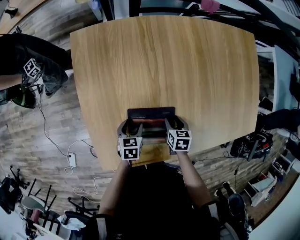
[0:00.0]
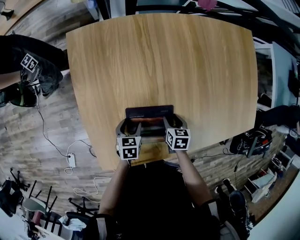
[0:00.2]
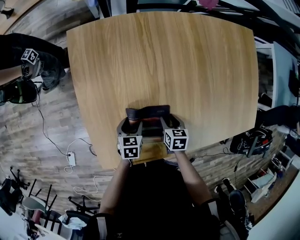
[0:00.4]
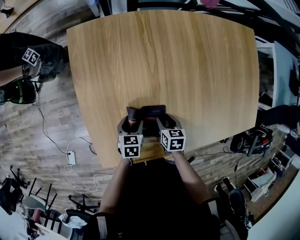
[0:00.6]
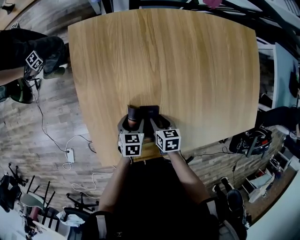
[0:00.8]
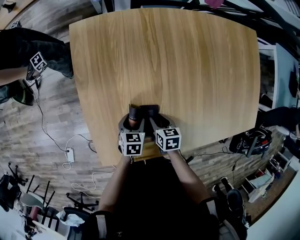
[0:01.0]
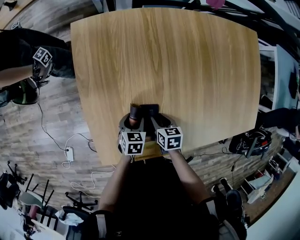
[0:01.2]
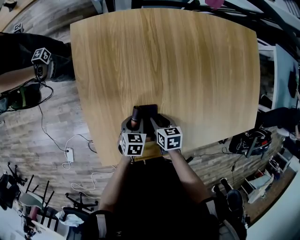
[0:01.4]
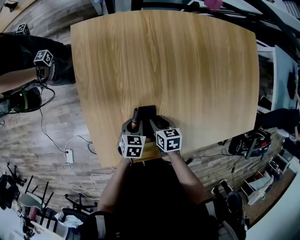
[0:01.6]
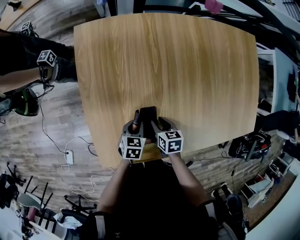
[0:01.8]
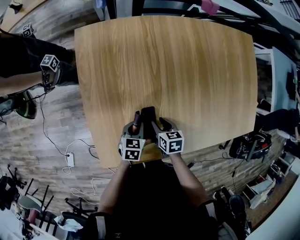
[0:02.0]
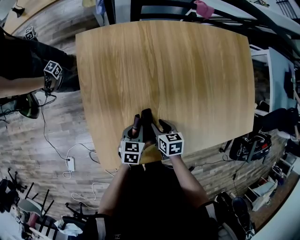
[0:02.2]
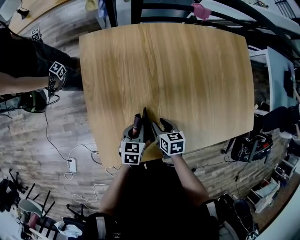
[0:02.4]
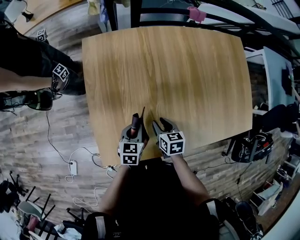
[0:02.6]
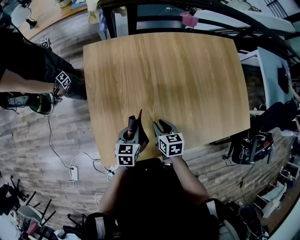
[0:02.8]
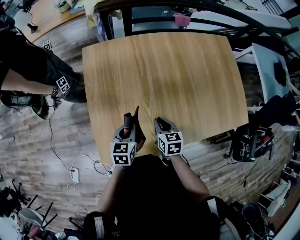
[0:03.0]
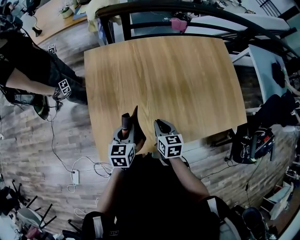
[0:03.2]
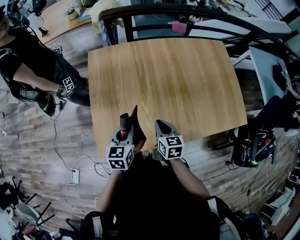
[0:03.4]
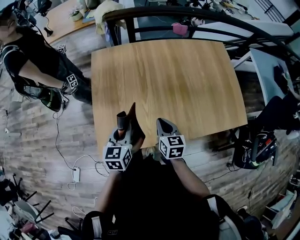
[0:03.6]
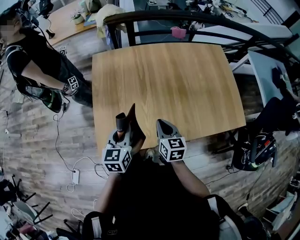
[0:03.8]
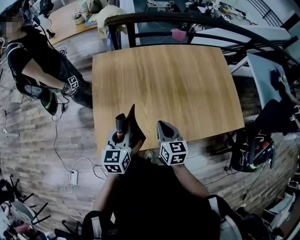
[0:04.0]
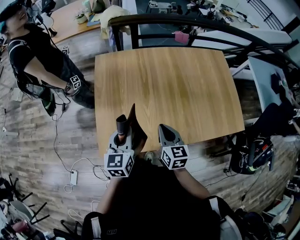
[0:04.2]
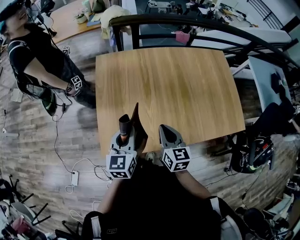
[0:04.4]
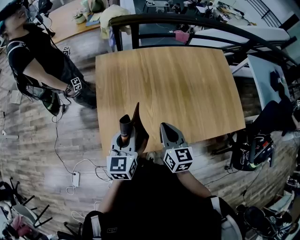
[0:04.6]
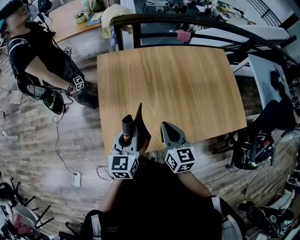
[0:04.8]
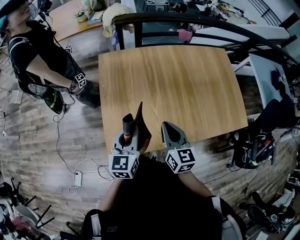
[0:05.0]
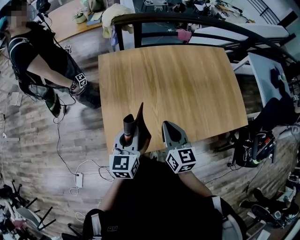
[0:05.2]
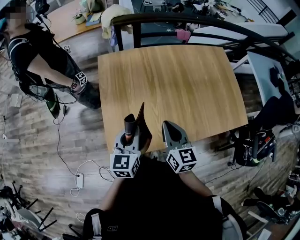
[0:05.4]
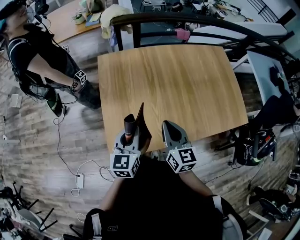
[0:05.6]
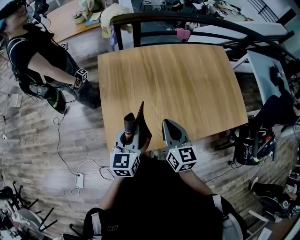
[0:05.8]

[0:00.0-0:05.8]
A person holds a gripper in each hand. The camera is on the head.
0:00.0 to 0:01.4: The left gripper closes up, while the right gripper shifts approximately 10 cm to the left.
0:01.4 to 0:02.8: The grippers both shift upward by approximately 10 cm. The left gripper closes its fingers.
0:02.8 to 0:04.4: The left gripper travels upward by about 20 cm, and changes its angle by about 30 degrees. Meanwhile the right gripper is displaced upward and backward by roughly 20 cm, changes its angle by approximately 30 degrees, and closes.
0:04.4 to 0:05.8: The right gripper travels upward by some 5 cm.

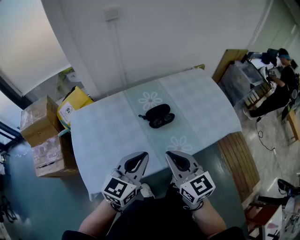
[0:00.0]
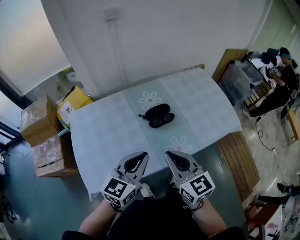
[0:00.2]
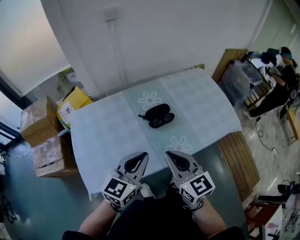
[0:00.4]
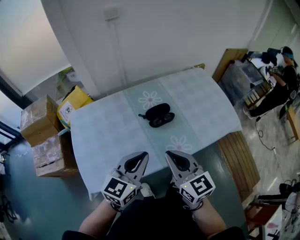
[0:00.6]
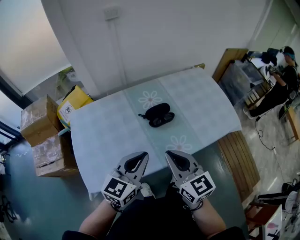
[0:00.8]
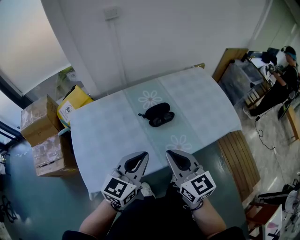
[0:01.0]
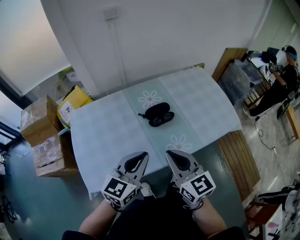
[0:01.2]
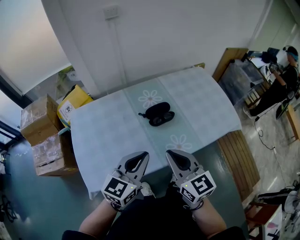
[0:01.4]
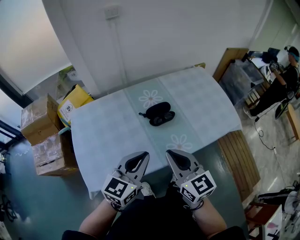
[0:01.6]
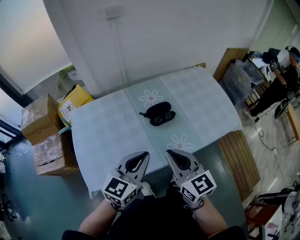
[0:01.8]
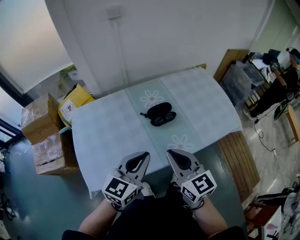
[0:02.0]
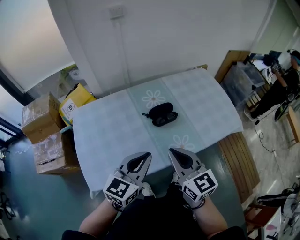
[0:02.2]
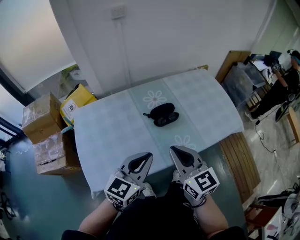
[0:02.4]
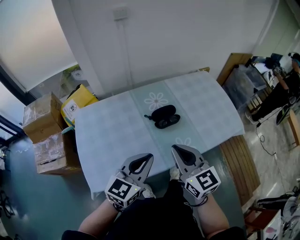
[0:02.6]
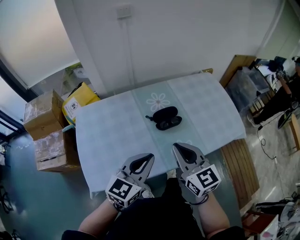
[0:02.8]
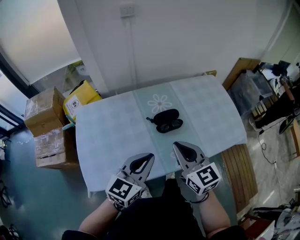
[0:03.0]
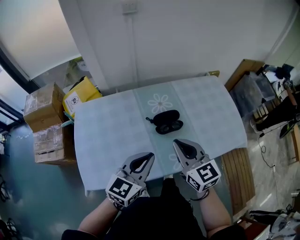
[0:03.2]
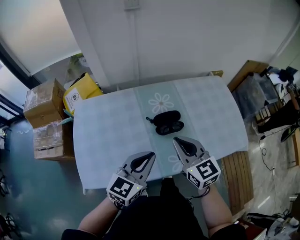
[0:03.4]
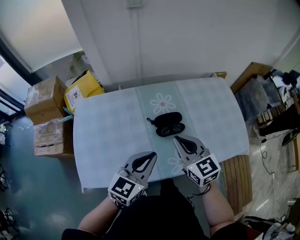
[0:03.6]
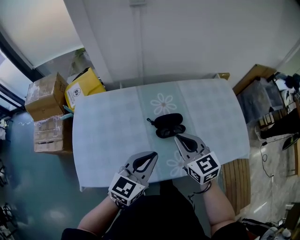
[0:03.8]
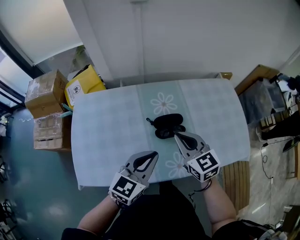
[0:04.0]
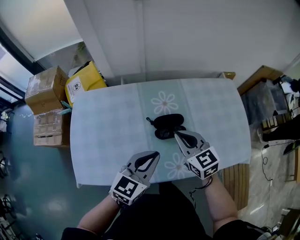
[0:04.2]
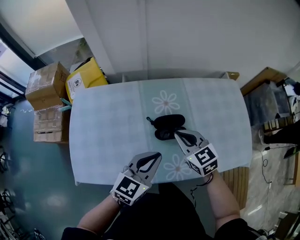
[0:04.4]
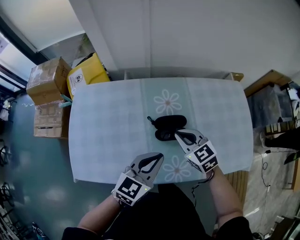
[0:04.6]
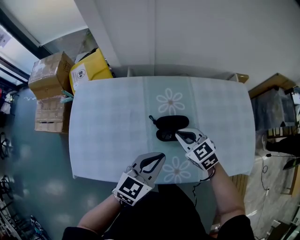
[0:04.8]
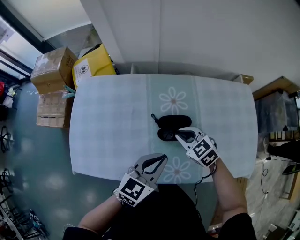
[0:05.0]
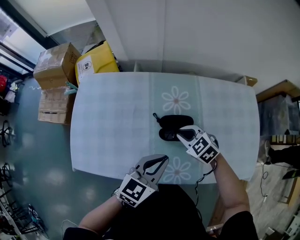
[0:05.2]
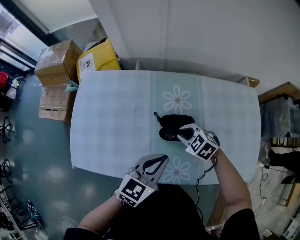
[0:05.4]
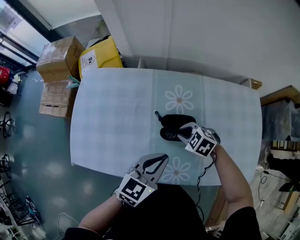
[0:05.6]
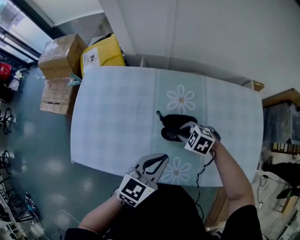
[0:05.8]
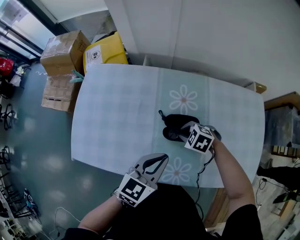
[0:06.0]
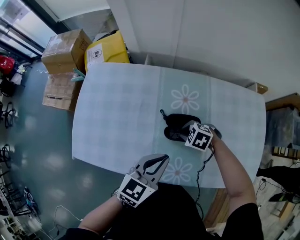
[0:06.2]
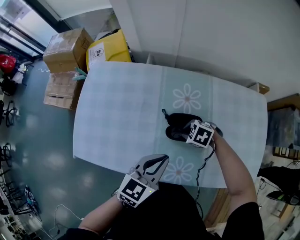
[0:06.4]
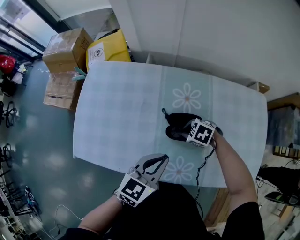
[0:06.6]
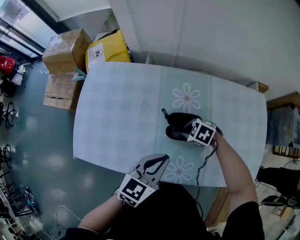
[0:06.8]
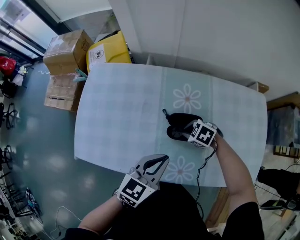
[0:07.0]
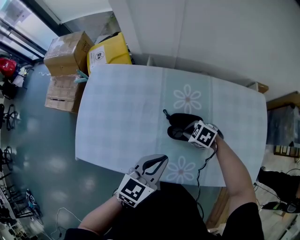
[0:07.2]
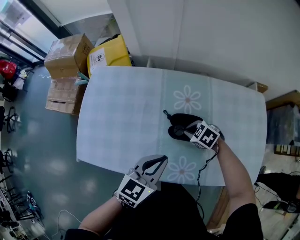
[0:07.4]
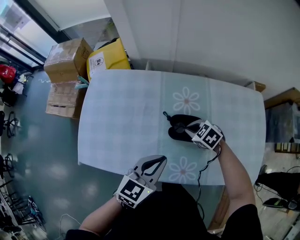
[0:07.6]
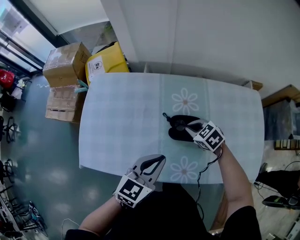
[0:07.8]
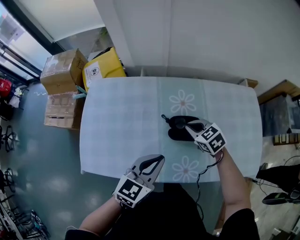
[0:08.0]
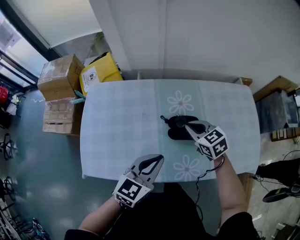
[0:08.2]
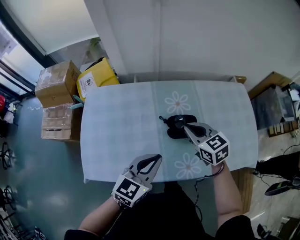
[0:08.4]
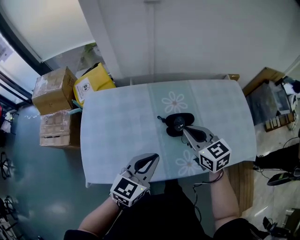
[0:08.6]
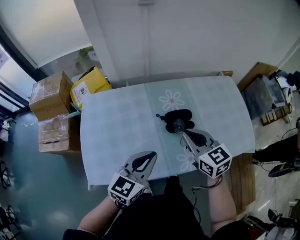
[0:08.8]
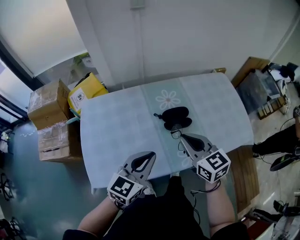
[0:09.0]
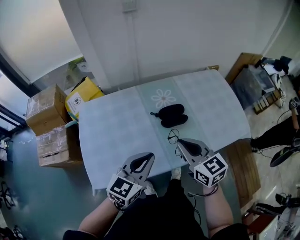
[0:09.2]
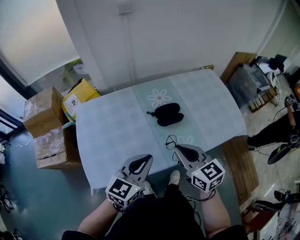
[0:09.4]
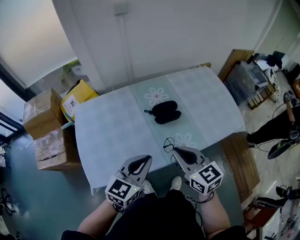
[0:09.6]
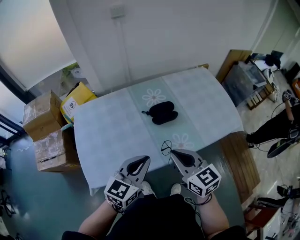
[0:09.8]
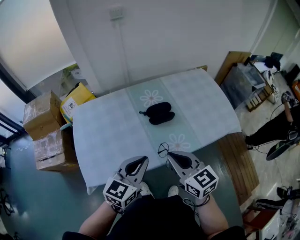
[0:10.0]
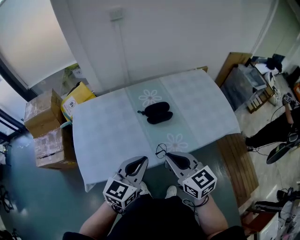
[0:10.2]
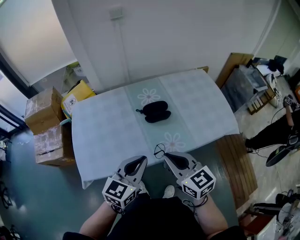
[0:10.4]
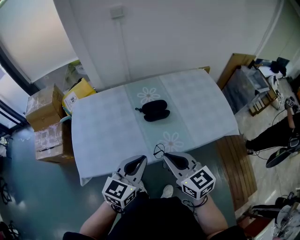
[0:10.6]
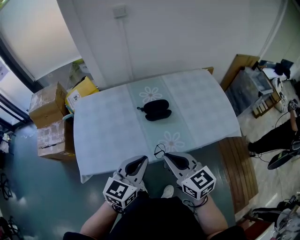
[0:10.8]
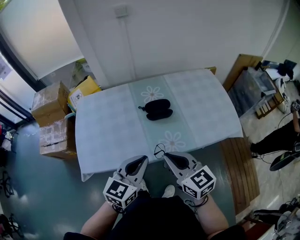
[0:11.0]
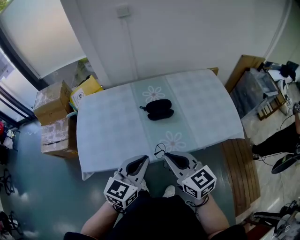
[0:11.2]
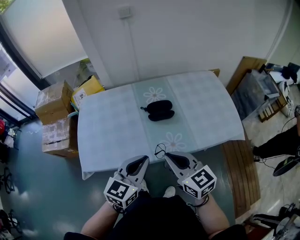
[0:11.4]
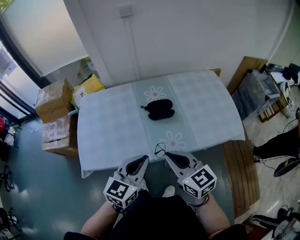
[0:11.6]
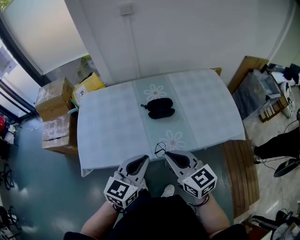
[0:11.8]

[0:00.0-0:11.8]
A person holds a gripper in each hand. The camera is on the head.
0:00.0 to 0:01.4: Both grippers stay about where they are.
0:01.4 to 0:03.0: The right gripper travels forward by about 5 cm.
0:03.0 to 0:04.4: The right gripper heads forward and downward, covering some 20 cm, and turns by some 30 degrees. Meanwhile the left gripper travels forward, to the right and downward by about 15 cm.
0:04.4 to 0:06.0: The right gripper is displaced downward by about 15 cm, and tips its fingers downward by some 40 degrees.
0:06.0 to 0:07.4: There are only small adjustments of the grippers.
0:07.4 to 0:08.8: The right gripper goes about 25 cm upward, and tilts its fingers approximately 40 degrees upward; the left gripper changes place by some 10 cm.
0:08.8 to 0:10.4: The left gripper shifts approximately 10 cm backward and to the right, while the right gripper is displaced backward by about 20 cm.
0:10.4 to 0:11.8: The grippers move only a little.

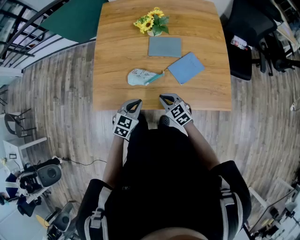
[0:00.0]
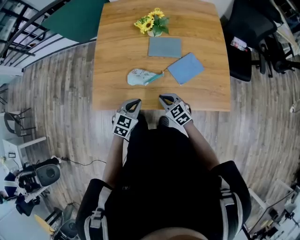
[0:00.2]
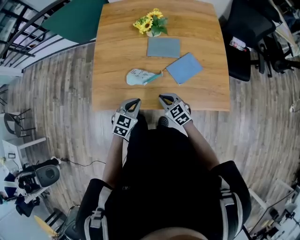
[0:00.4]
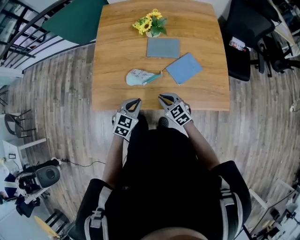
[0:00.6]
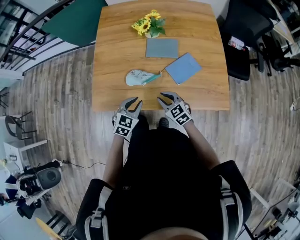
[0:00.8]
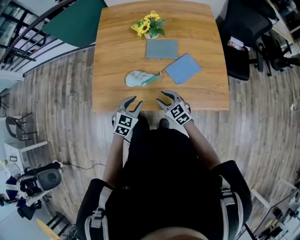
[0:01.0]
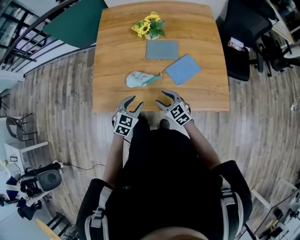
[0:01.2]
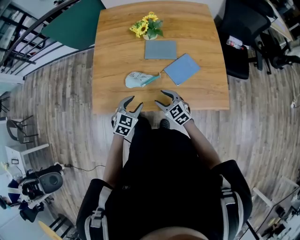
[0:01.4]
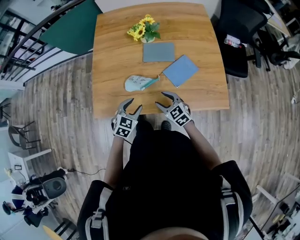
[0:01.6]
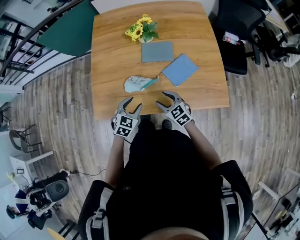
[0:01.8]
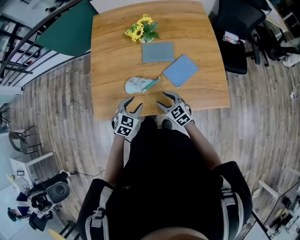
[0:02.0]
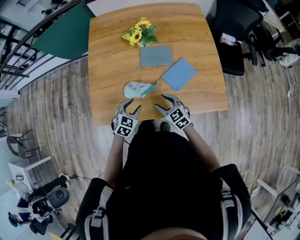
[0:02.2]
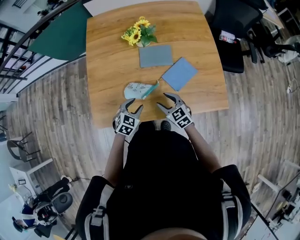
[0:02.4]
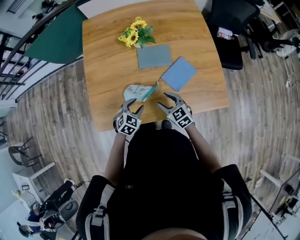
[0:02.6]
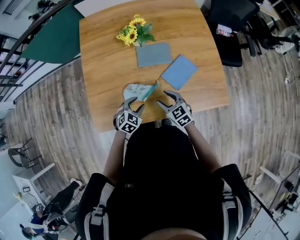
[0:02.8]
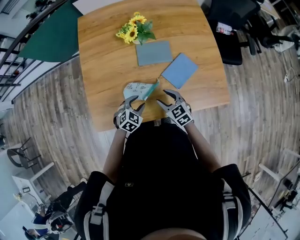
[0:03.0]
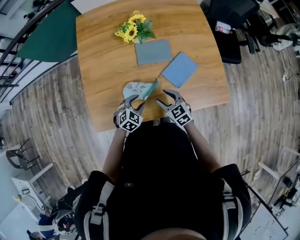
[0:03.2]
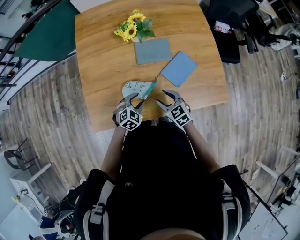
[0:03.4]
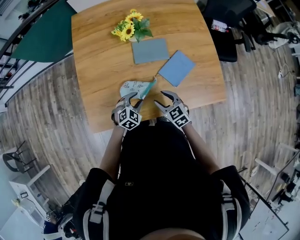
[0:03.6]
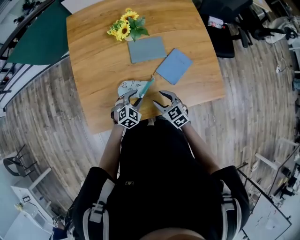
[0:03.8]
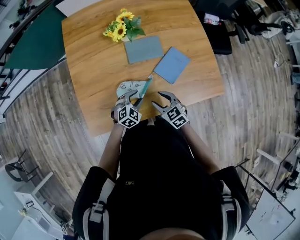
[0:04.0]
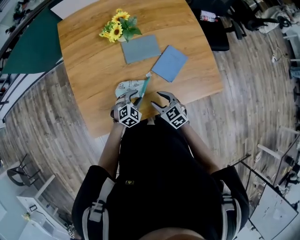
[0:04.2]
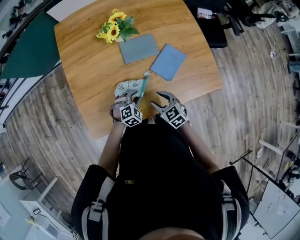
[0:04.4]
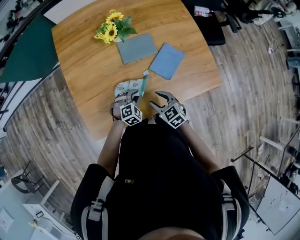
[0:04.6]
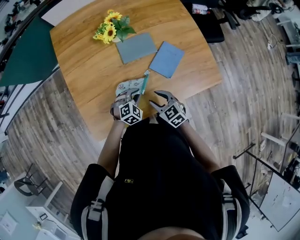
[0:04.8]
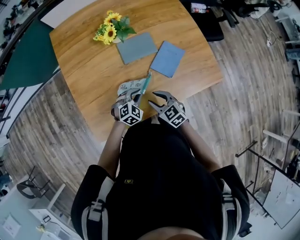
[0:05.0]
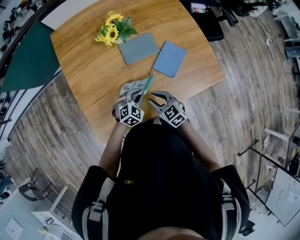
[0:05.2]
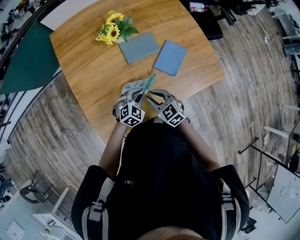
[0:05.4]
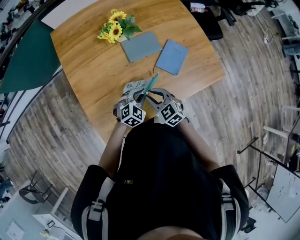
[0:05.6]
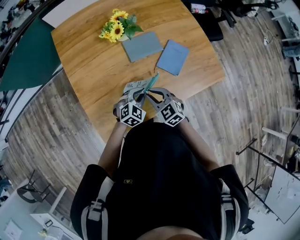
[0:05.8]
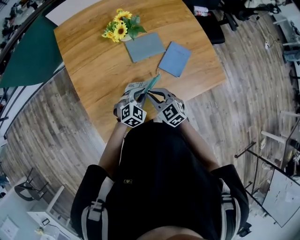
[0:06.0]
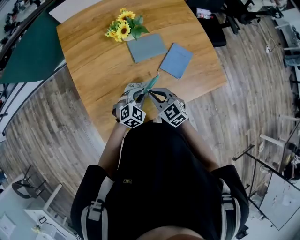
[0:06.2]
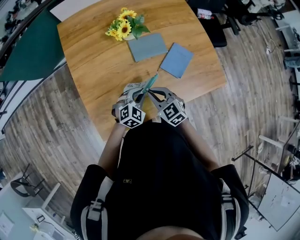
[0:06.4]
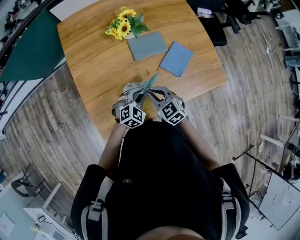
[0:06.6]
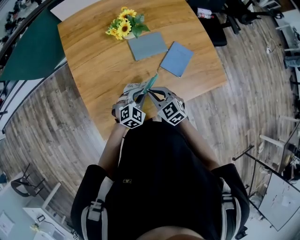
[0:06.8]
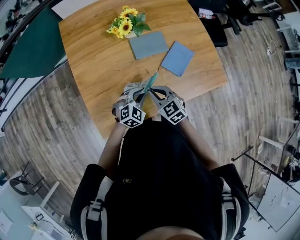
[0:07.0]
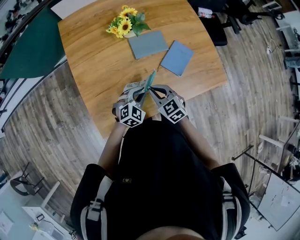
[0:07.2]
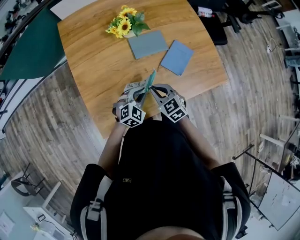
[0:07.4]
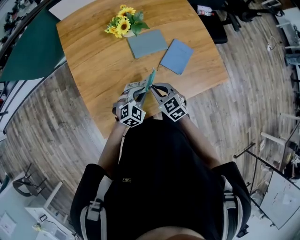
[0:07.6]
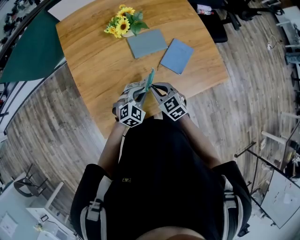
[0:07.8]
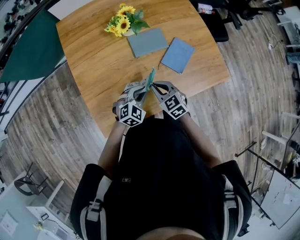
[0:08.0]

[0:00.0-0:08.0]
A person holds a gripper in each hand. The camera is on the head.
0:00.0 to 0:01.6: The left gripper opens; the right gripper opens its fingers.
0:01.6 to 0:03.2: The left gripper shifts roughly 10 cm downward and forward, and swivels some 20 degrees. The right gripper moves forward, about 5 cm.
0:03.2 to 0:04.8: The left gripper changes its angle by some 20 degrees, and closes its fingers.
0:04.8 to 0:06.4: The left gripper goes about 5 cm upward. The right gripper travels to the left and upward by approximately 10 cm, and closes its fingers.
0:06.4 to 0:08.0: The grippers make only small movements.
